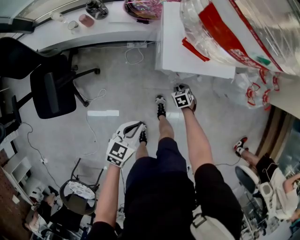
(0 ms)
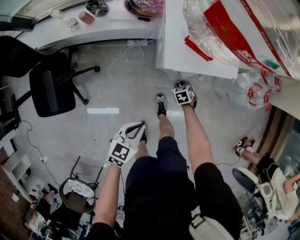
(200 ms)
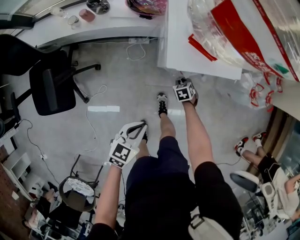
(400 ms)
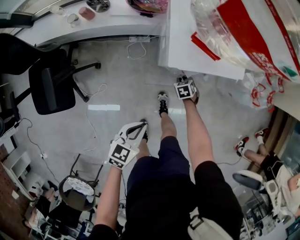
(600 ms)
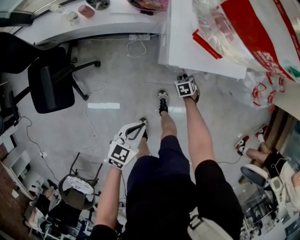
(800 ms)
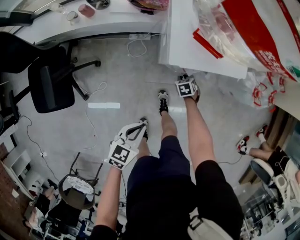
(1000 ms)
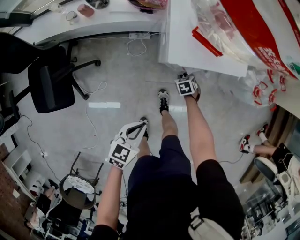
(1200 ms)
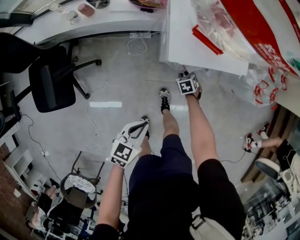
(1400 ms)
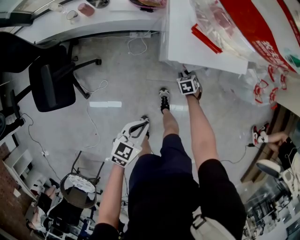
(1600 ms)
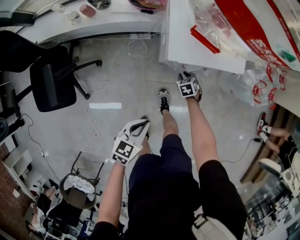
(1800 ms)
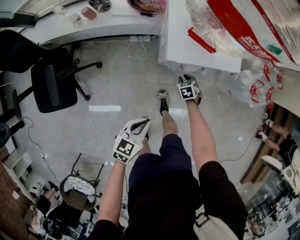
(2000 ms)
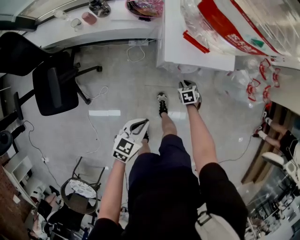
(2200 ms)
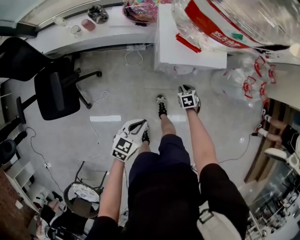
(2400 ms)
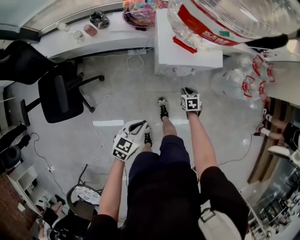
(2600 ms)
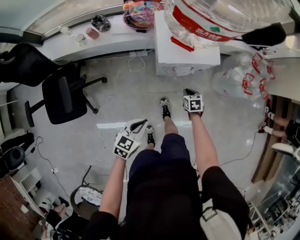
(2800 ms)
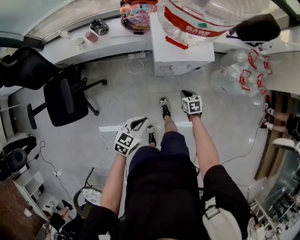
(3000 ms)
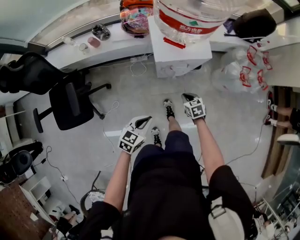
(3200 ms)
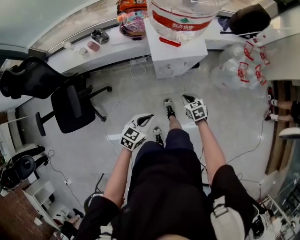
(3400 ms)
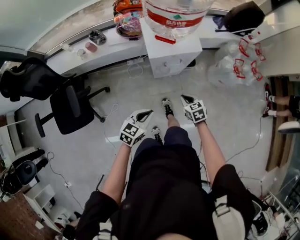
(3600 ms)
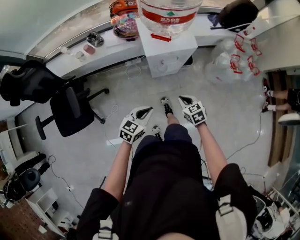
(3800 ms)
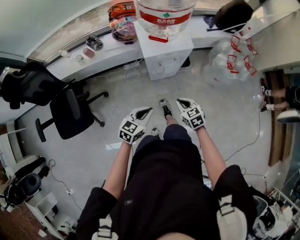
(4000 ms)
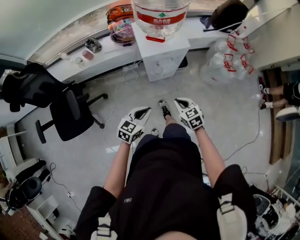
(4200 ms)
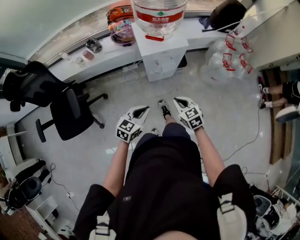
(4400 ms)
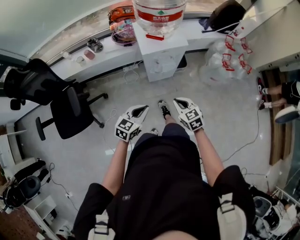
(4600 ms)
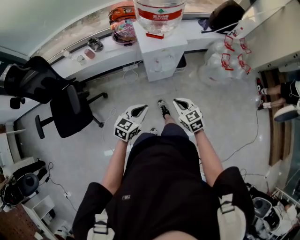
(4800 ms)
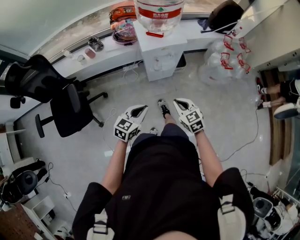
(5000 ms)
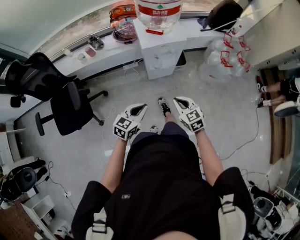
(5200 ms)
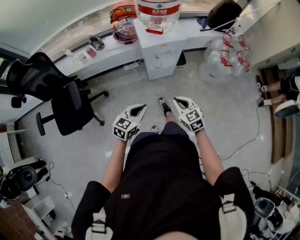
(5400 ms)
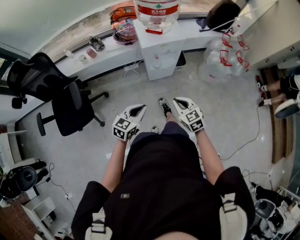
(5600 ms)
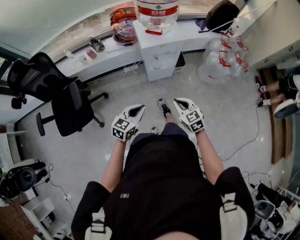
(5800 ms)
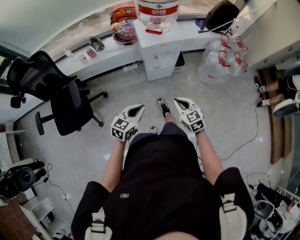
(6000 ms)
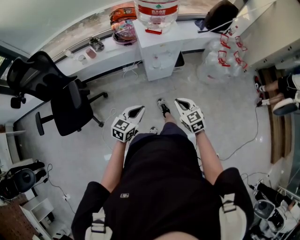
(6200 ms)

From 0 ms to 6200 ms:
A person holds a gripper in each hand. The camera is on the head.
From 0 ms to 1600 ms: The grippers move only a little.
From 1600 ms to 3200 ms: The right gripper moves upward and backward, about 25 cm. The left gripper travels upward by some 10 cm.
From 3200 ms to 4600 ms: The right gripper shifts some 25 cm upward and backward. Meanwhile the left gripper is displaced upward by about 10 cm.
From 4600 ms to 6200 ms: The grippers both shift backward by roughly 10 cm.

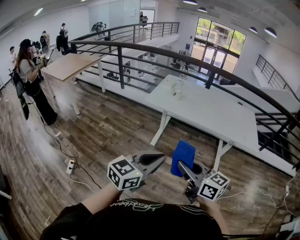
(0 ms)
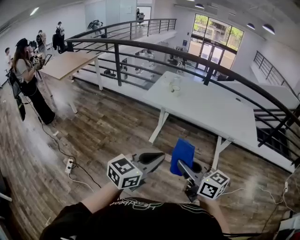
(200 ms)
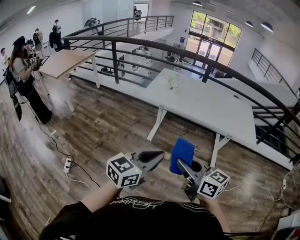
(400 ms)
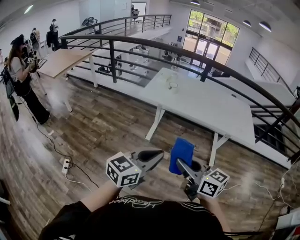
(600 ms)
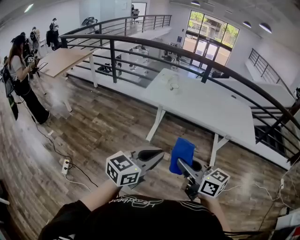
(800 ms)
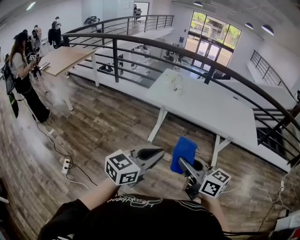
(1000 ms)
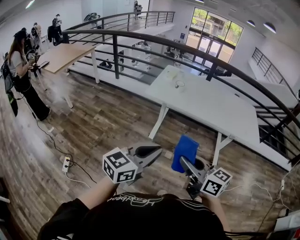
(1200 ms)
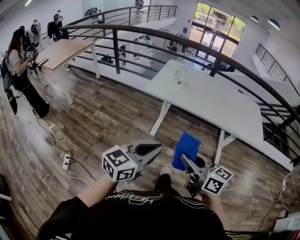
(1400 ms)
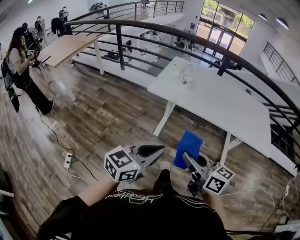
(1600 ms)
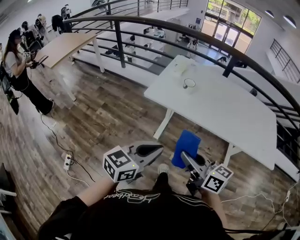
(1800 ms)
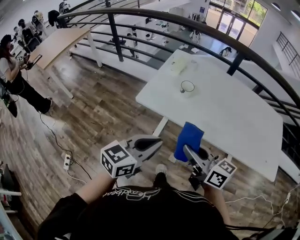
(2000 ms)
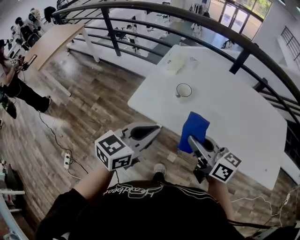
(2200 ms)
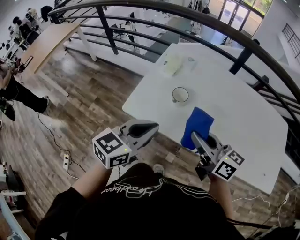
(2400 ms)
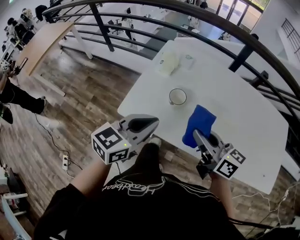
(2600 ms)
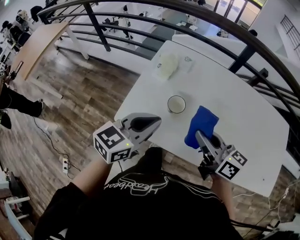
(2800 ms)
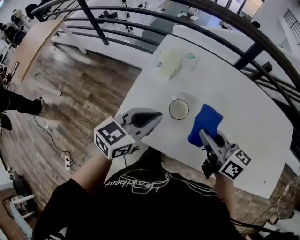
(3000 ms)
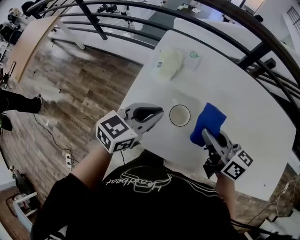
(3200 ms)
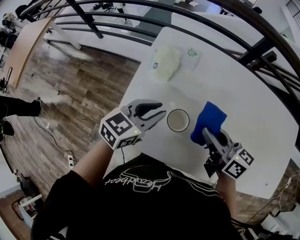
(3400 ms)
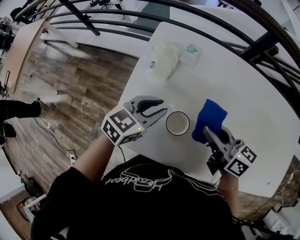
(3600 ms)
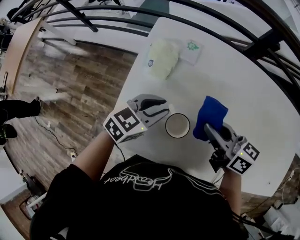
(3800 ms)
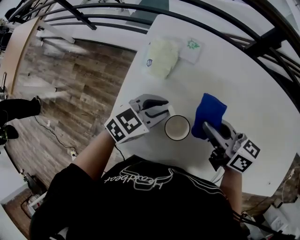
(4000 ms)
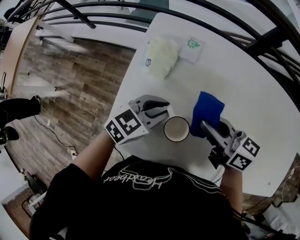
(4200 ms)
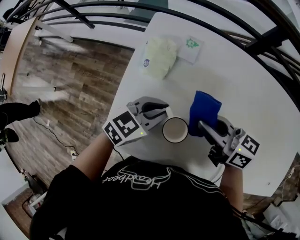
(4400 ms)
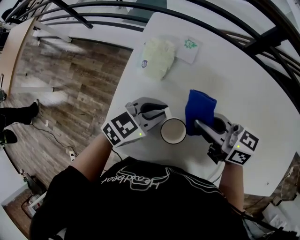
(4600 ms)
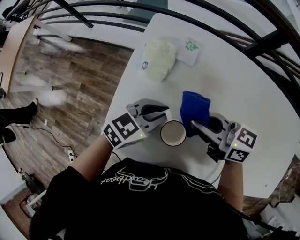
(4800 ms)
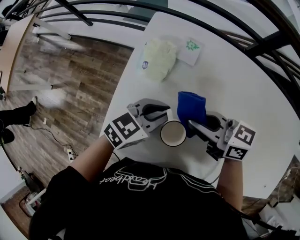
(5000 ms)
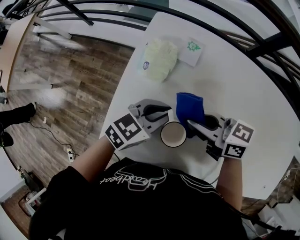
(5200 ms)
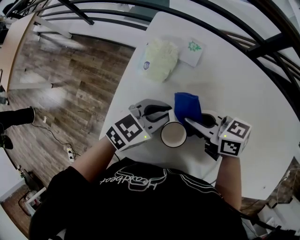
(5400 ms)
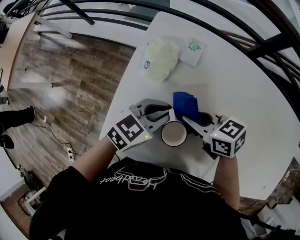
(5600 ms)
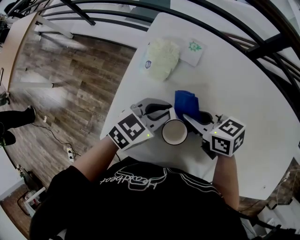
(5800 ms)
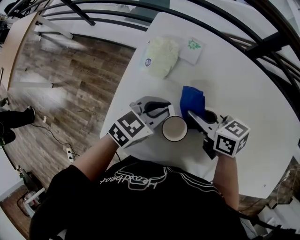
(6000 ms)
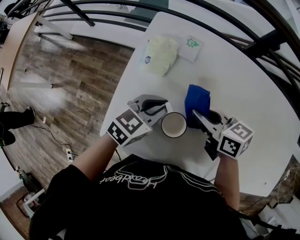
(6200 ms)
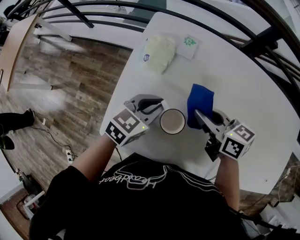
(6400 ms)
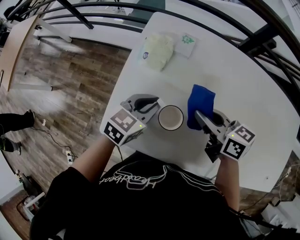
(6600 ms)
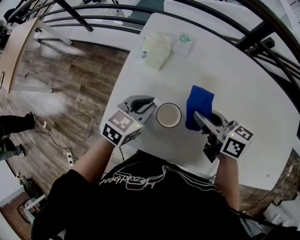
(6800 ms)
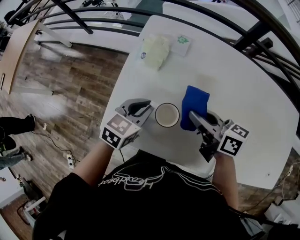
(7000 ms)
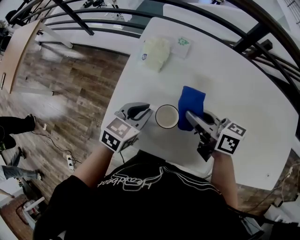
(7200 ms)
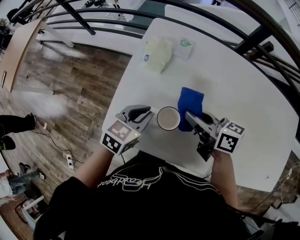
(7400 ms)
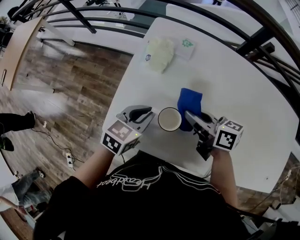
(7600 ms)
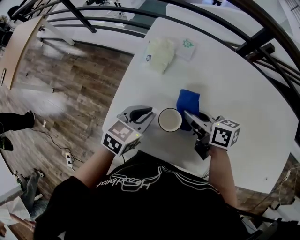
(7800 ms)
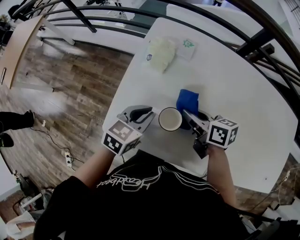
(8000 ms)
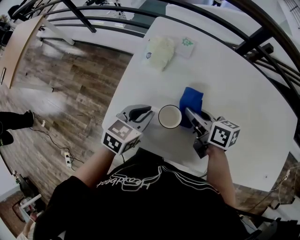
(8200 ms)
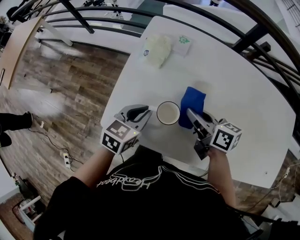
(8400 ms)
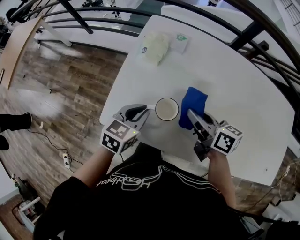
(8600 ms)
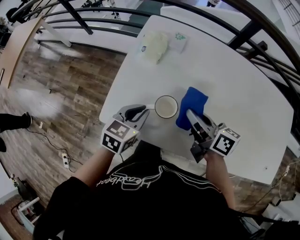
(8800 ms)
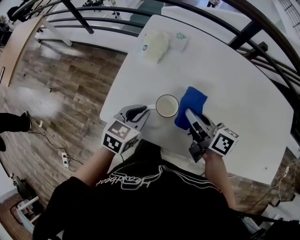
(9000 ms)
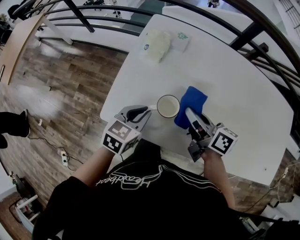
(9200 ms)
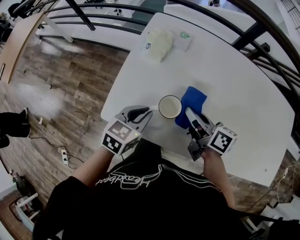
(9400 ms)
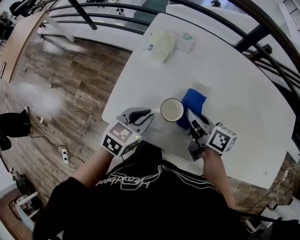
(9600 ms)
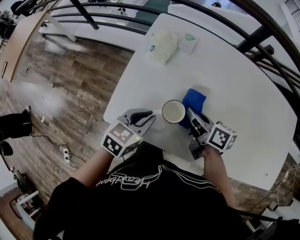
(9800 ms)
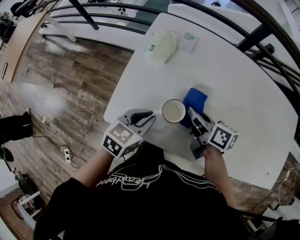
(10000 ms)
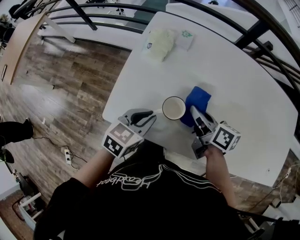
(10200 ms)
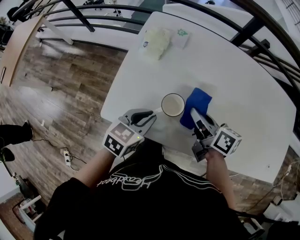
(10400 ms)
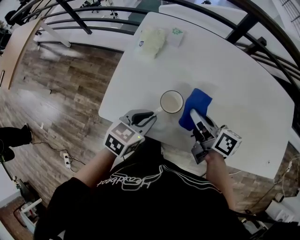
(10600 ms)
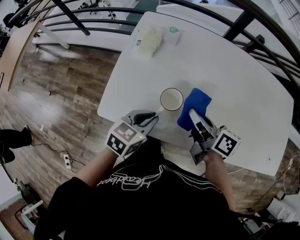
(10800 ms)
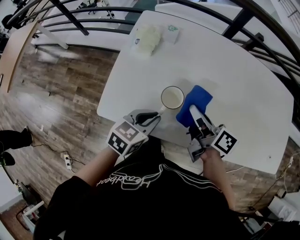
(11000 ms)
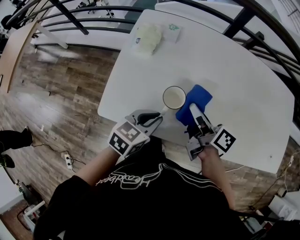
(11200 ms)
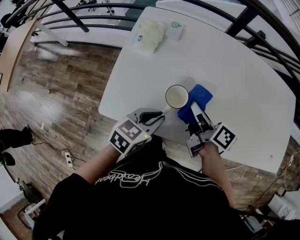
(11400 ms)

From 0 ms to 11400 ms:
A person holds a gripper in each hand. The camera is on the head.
From 0 ms to 1400 ms: The two grippers go approximately 10 cm forward and to the left.
From 1400 ms to 2800 ms: The two grippers travel together, forward, roughly 60 cm.
From 2800 ms to 4200 ms: The right gripper goes about 20 cm forward and downward. The left gripper shifts about 25 cm downward and forward, and swivels some 20 degrees.
From 4200 ms to 5600 ms: The right gripper goes roughly 5 cm downward, and turns by approximately 30 degrees.
From 5600 ms to 7200 ms: The right gripper travels upward by approximately 5 cm, and turns by approximately 30 degrees; the left gripper shifts by some 5 cm.
From 7200 ms to 8600 ms: The grippers stay close to where they were, moving slightly.
From 8600 ms to 10000 ms: There are only small adjustments of the grippers.
From 10000 ms to 11400 ms: The right gripper moves some 5 cm. The left gripper heads to the right, covering approximately 5 cm.

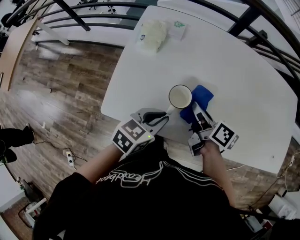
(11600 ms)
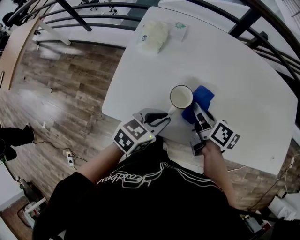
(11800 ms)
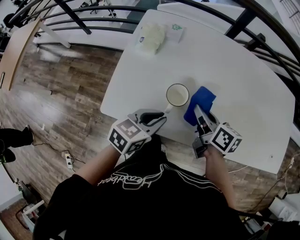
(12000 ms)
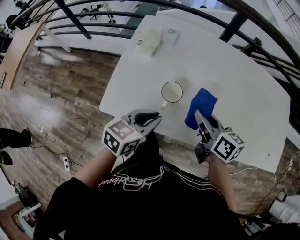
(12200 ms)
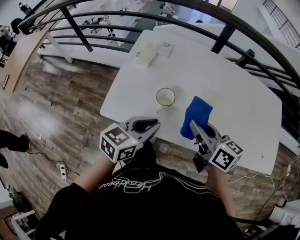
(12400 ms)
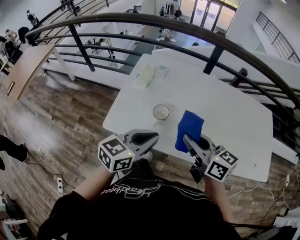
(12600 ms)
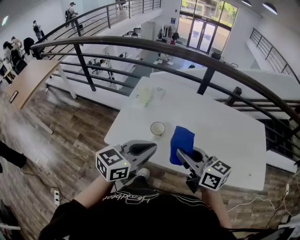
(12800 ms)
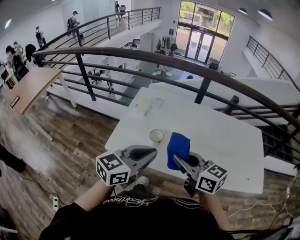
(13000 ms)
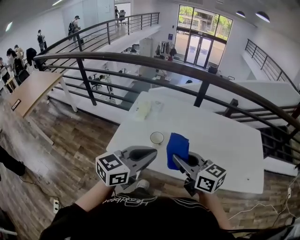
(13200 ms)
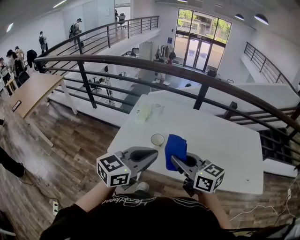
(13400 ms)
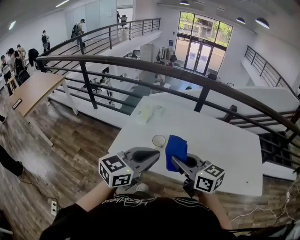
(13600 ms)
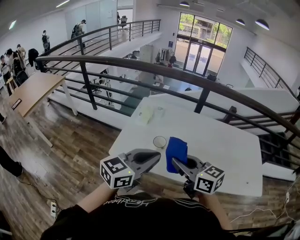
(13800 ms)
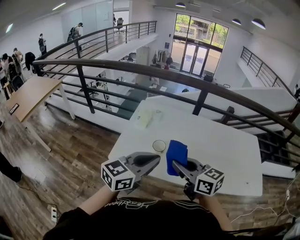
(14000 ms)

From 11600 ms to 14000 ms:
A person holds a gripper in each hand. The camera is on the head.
From 11600 ms to 12800 ms: The left gripper goes approximately 25 cm upward, and rotates roughly 30 degrees. Meanwhile the right gripper is displaced upward and backward by approximately 30 cm, and rolls counterclockwise, seen from behind, by about 40 degrees.
From 12800 ms to 14000 ms: The left gripper shifts by approximately 5 cm.

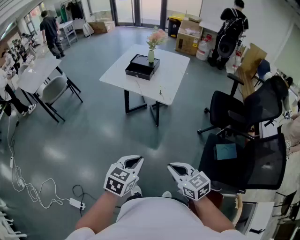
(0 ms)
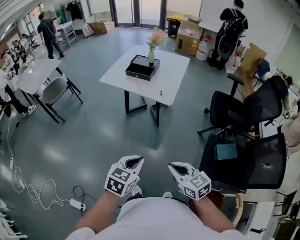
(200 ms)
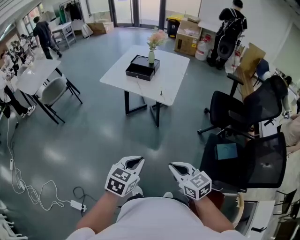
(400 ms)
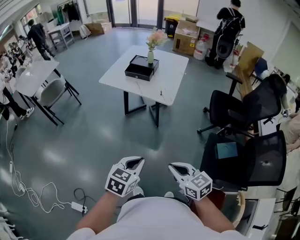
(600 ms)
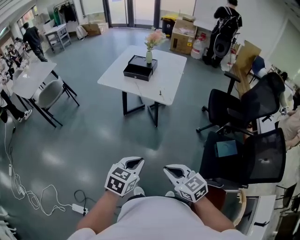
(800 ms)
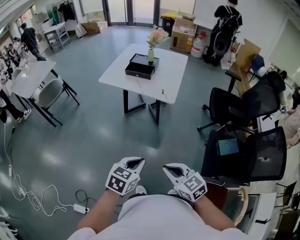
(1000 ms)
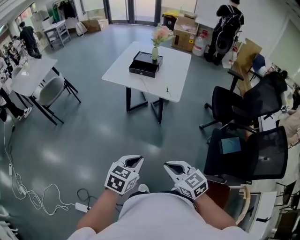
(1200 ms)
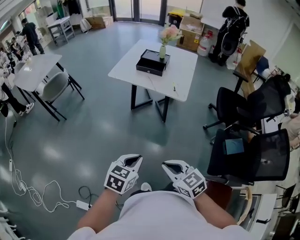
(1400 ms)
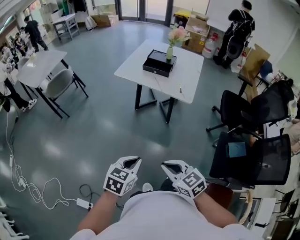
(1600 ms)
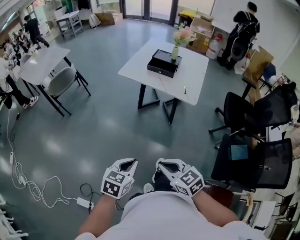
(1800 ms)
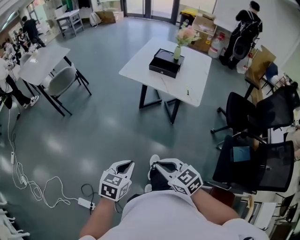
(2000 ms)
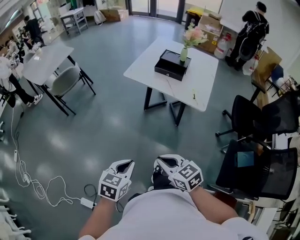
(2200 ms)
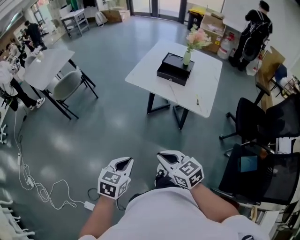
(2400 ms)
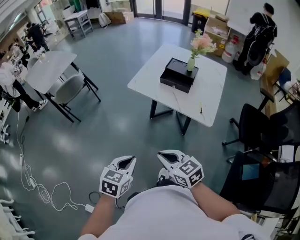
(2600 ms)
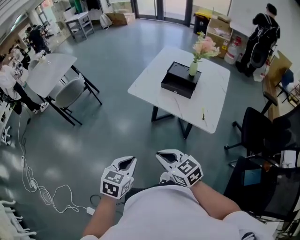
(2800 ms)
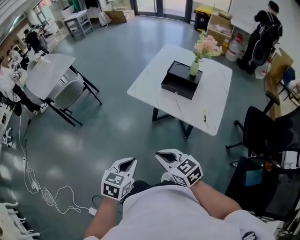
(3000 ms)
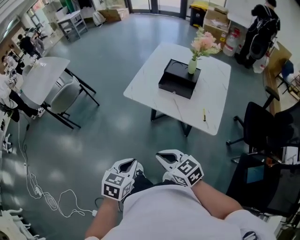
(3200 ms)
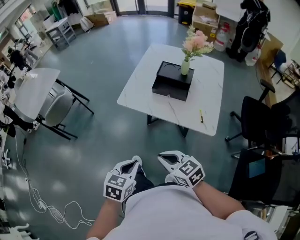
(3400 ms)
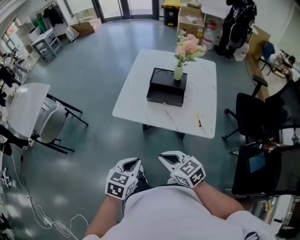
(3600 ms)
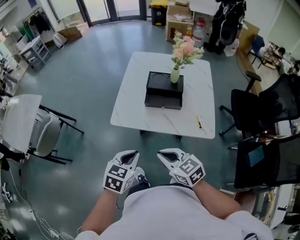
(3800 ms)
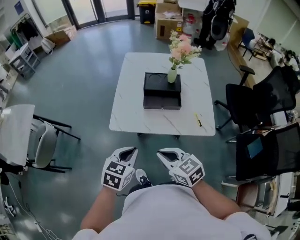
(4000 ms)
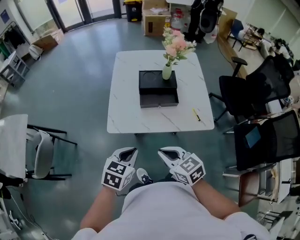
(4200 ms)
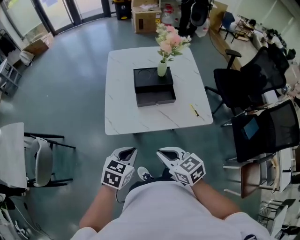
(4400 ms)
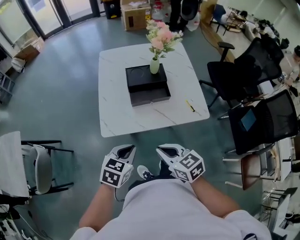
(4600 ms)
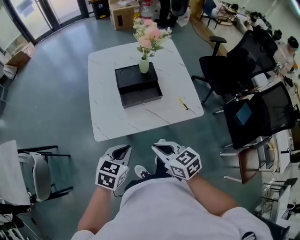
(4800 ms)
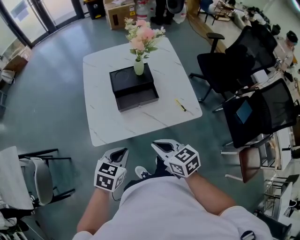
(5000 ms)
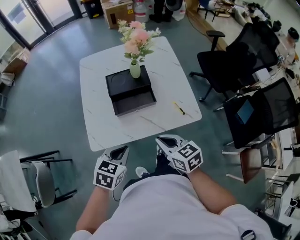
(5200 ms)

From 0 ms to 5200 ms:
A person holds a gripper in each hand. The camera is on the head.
From 0 ms to 1800 ms: Both grippers move to the left, approximately 20 cm.
From 1800 ms to 3400 ms: The two grippers go approximately 35 cm forward.
From 3400 ms to 5200 ms: The right gripper shifts by approximately 20 cm, and rotates approximately 40 degrees; the left gripper moves approximately 25 cm, and turns by roughly 40 degrees.
